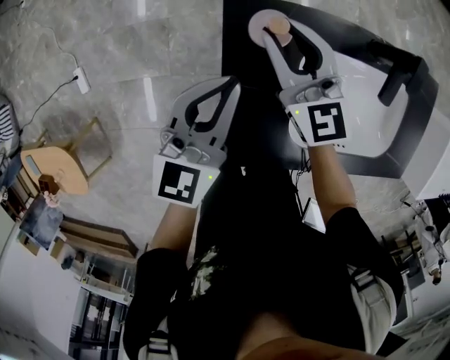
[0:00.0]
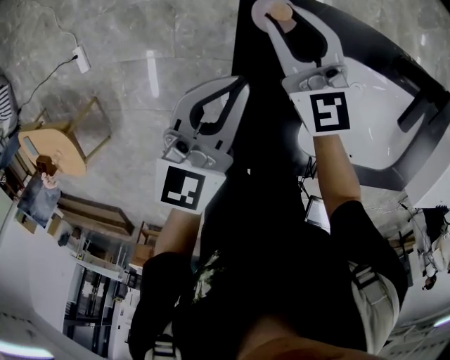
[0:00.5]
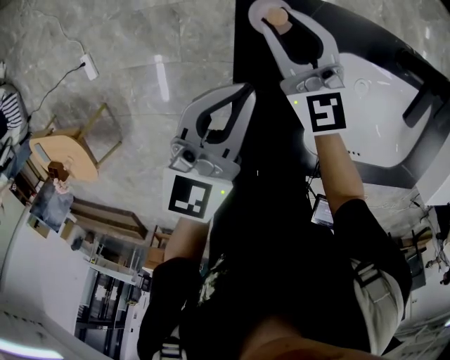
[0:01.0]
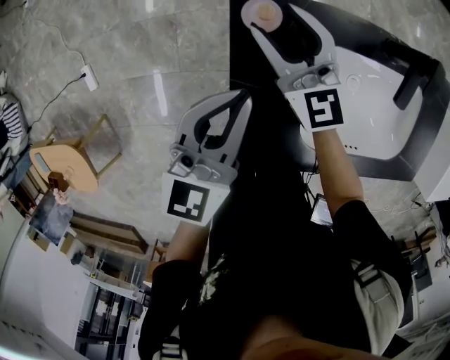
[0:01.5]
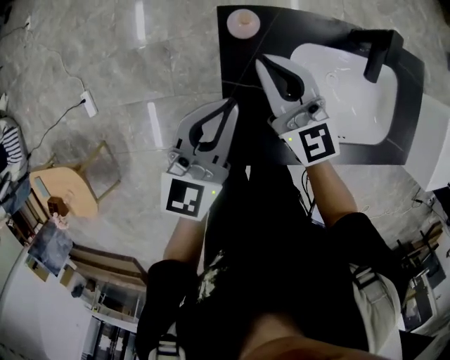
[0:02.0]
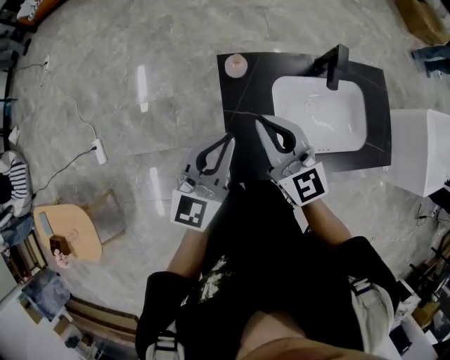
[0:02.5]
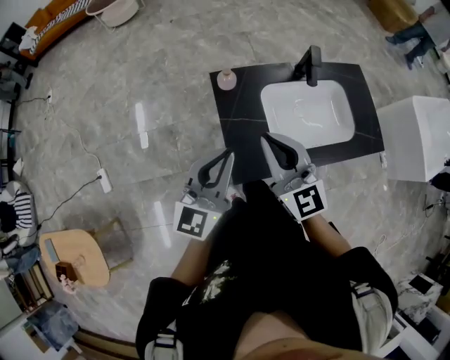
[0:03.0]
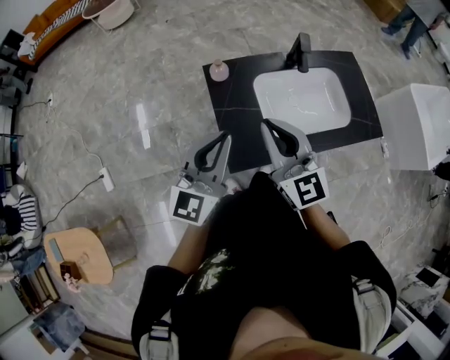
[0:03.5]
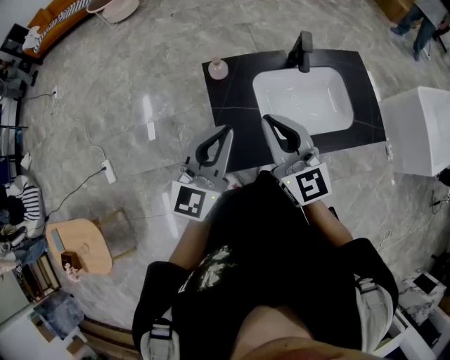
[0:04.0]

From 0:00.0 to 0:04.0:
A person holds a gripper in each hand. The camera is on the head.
From 0:00.0 to 0:02.0: The grippers both shift backward and upward by approximately 10 cm. The right gripper closes its fingers.
From 0:02.0 to 0:04.0: The grippers both shift backward and upward by approximately 30 cm.

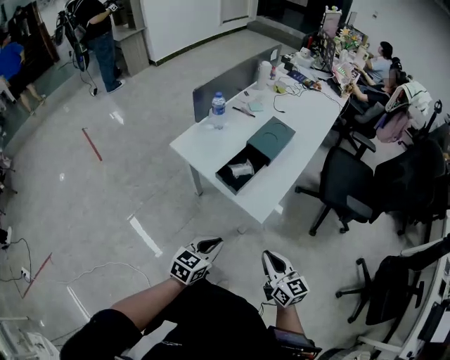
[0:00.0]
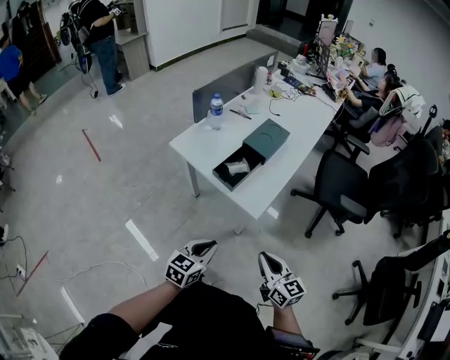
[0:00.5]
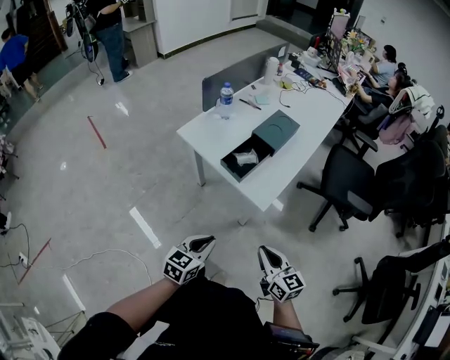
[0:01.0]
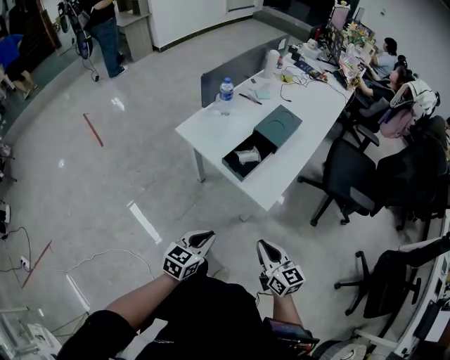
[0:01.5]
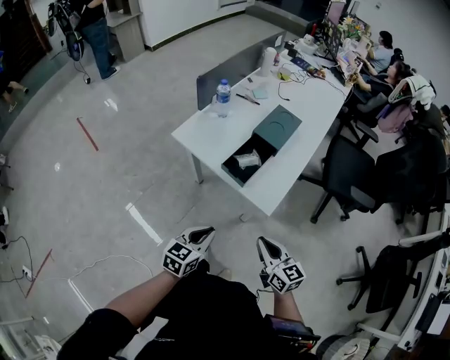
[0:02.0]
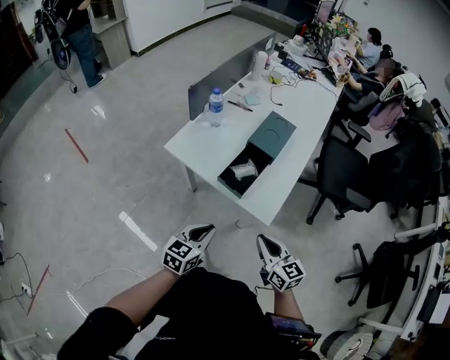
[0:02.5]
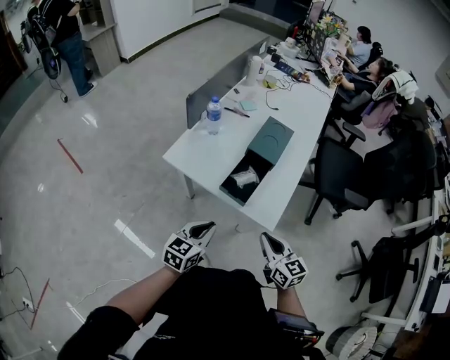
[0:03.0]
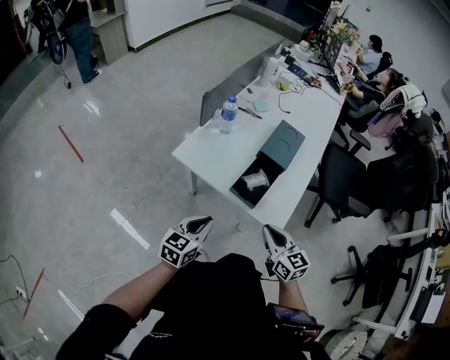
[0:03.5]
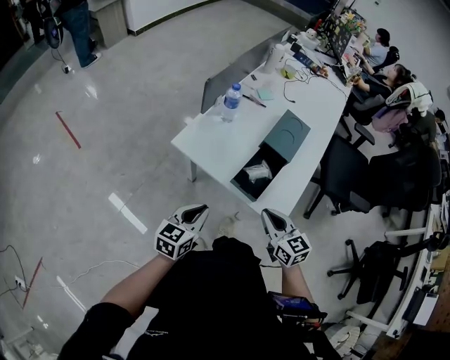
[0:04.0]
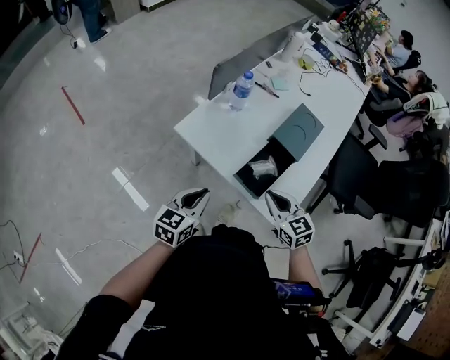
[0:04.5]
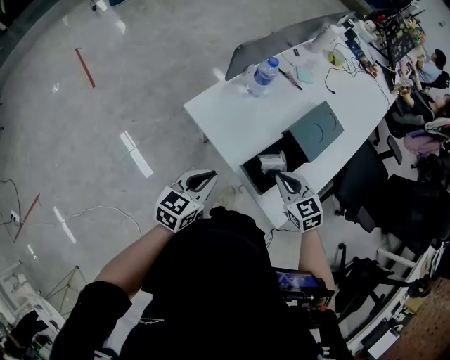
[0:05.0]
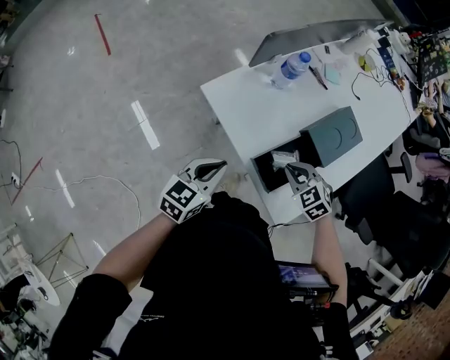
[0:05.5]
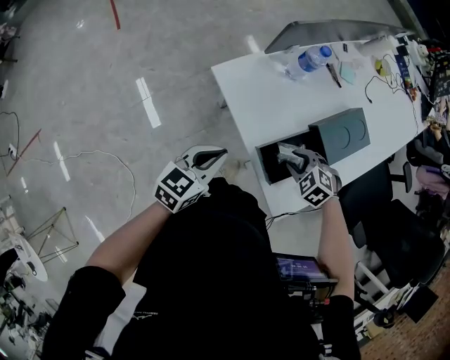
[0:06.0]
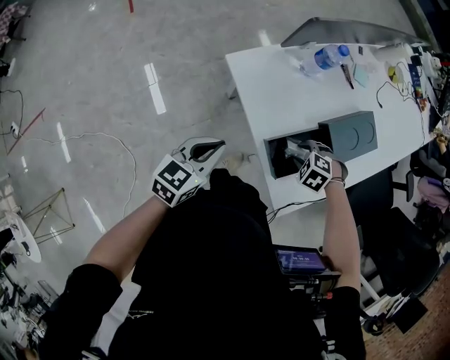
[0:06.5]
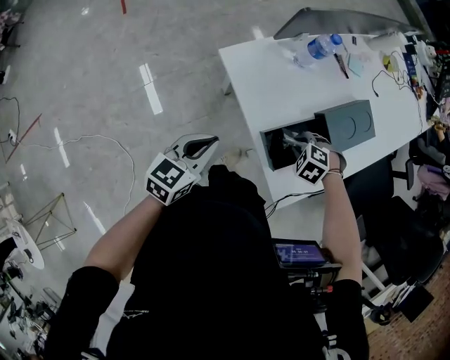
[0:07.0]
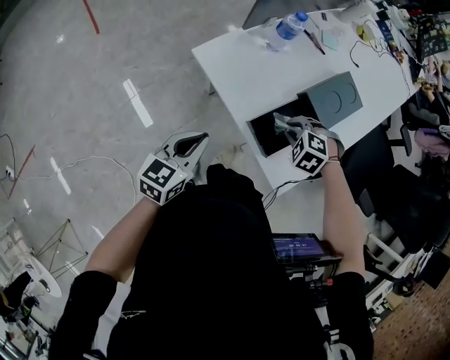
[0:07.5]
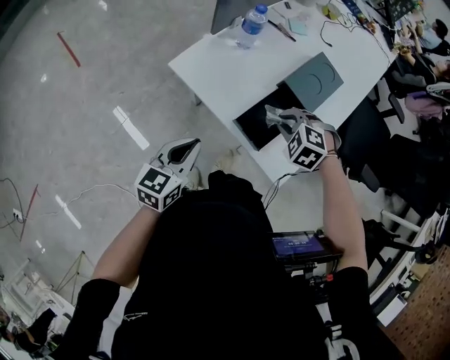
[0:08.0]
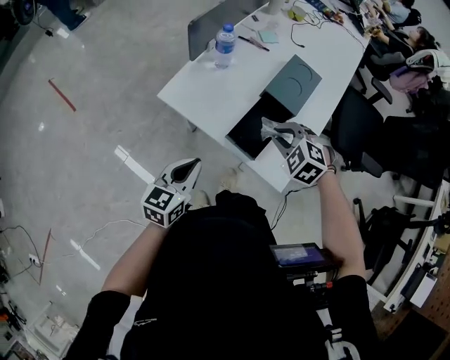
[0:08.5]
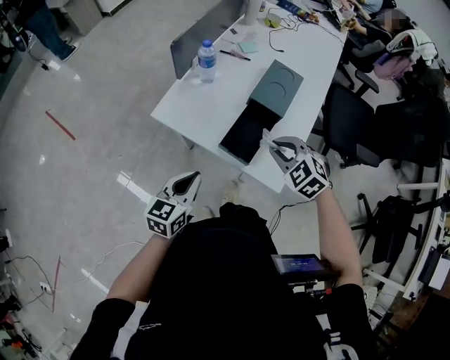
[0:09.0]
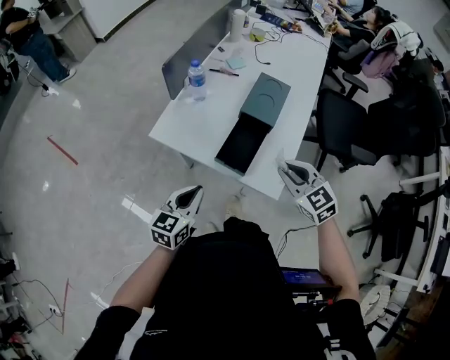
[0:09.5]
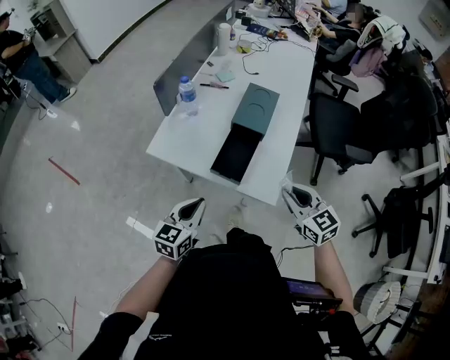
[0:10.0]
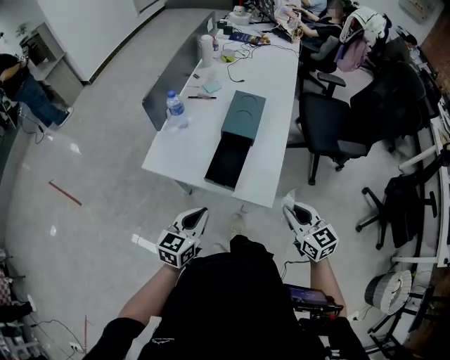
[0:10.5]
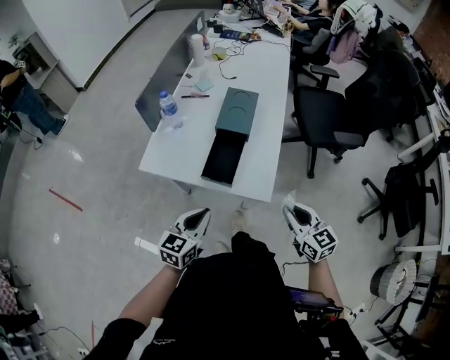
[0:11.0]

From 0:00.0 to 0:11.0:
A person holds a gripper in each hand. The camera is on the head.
From 0:00.0 to 0:02.0: The grippers both shift to the left by approximately 5 cm.
From 0:02.0 to 0:03.5: The two grippers go about 15 cm forward and to the left.
From 0:03.5 to 0:05.5: The left gripper is displaced forward by some 10 cm; the right gripper moves forward and downward, about 20 cm, and tips its fingers downward by approximately 40 degrees.
From 0:05.5 to 0:07.5: The right gripper turns by roughly 30 degrees, and opens and closes again.
From 0:07.5 to 0:09.0: The right gripper heads upward, covering approximately 10 cm, and turns by some 40 degrees.
From 0:09.0 to 0:11.0: The right gripper heads backward and to the right, covering some 20 cm, and twists roughly 50 degrees clockwise, seen from behind; the left gripper moves to the right, roughly 5 cm.

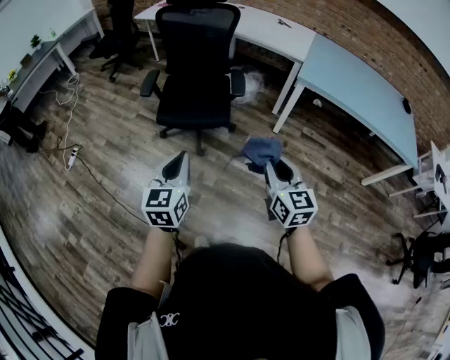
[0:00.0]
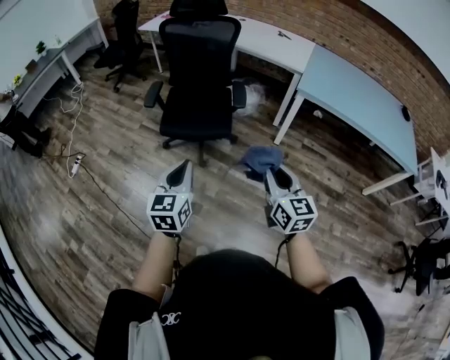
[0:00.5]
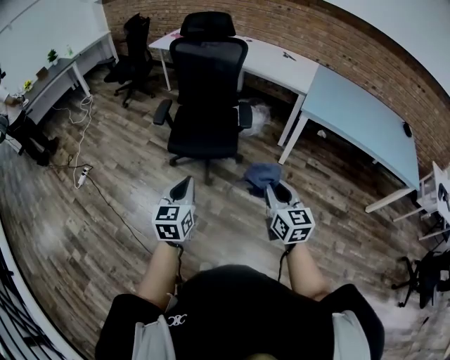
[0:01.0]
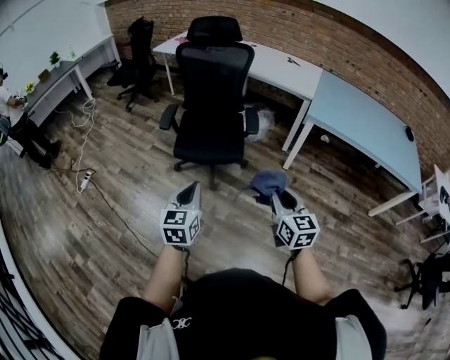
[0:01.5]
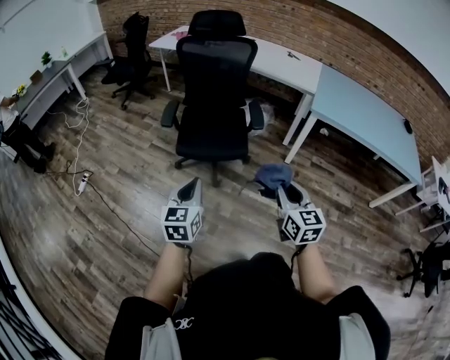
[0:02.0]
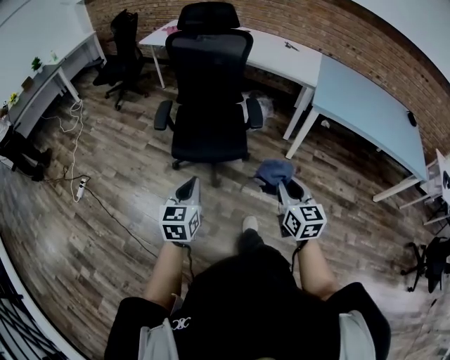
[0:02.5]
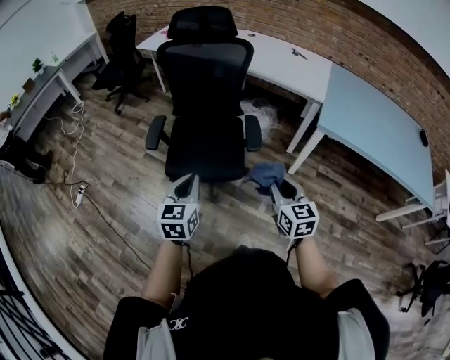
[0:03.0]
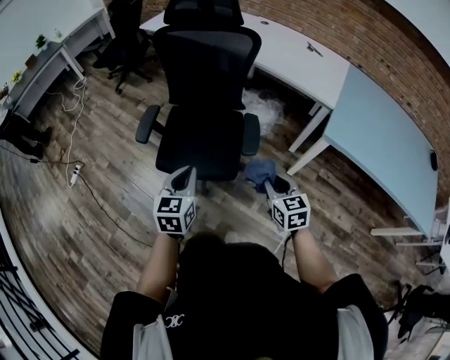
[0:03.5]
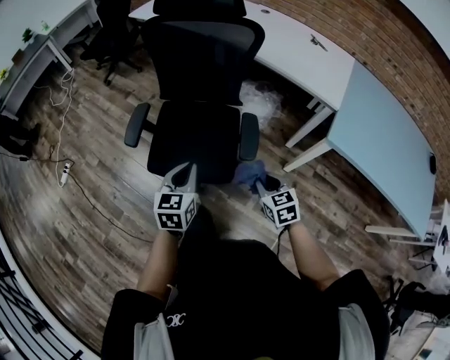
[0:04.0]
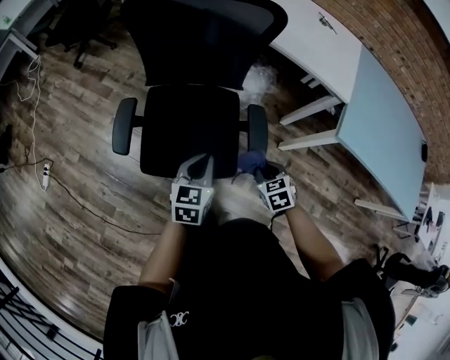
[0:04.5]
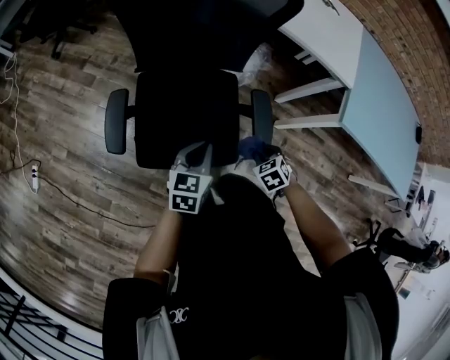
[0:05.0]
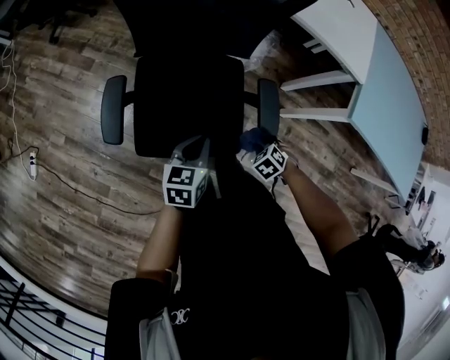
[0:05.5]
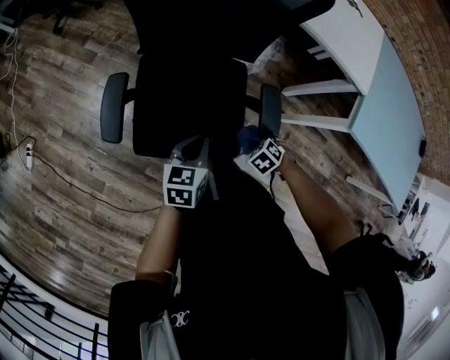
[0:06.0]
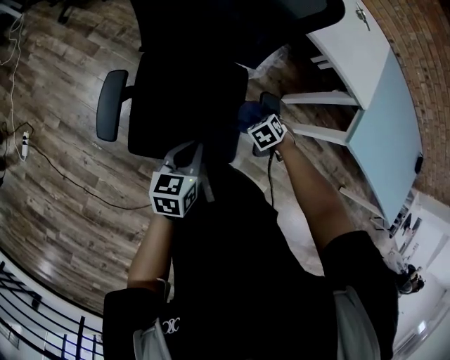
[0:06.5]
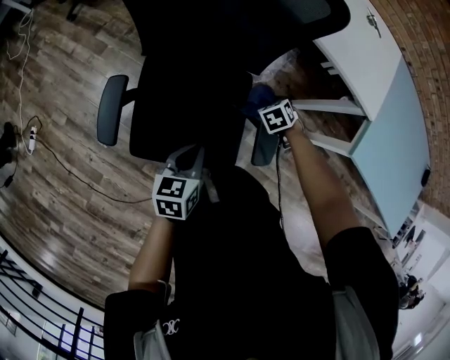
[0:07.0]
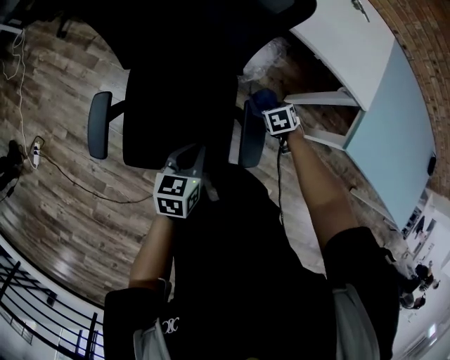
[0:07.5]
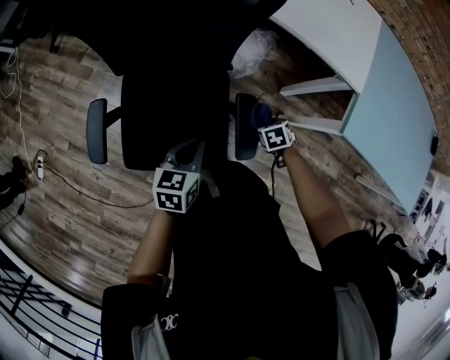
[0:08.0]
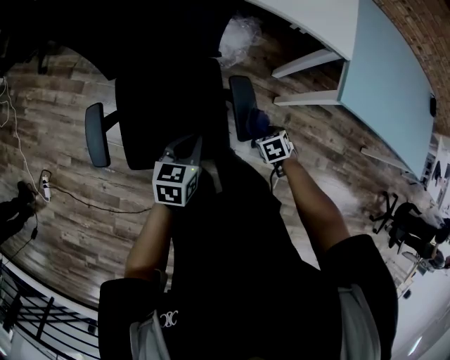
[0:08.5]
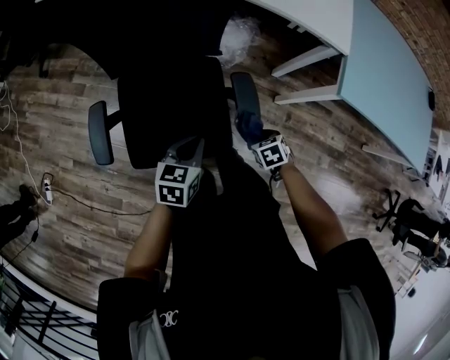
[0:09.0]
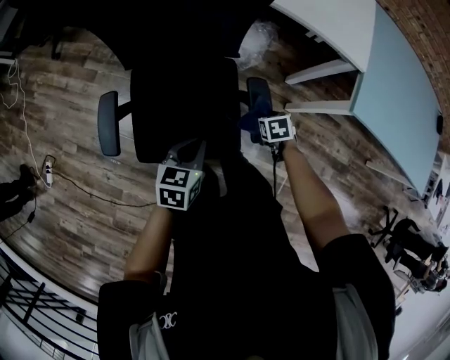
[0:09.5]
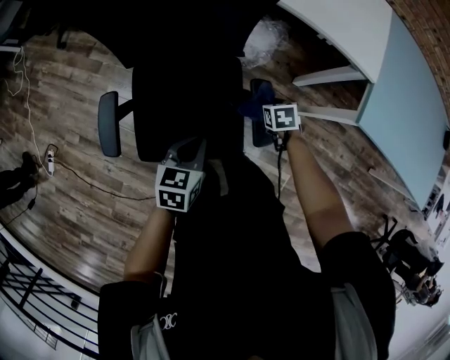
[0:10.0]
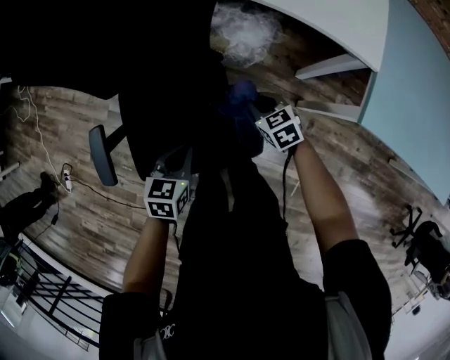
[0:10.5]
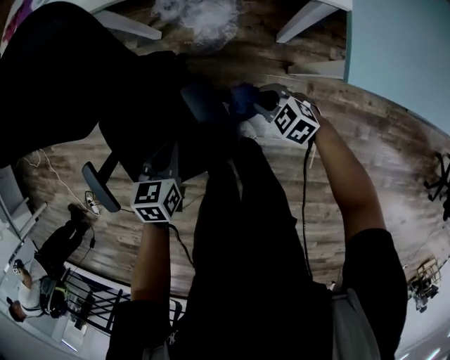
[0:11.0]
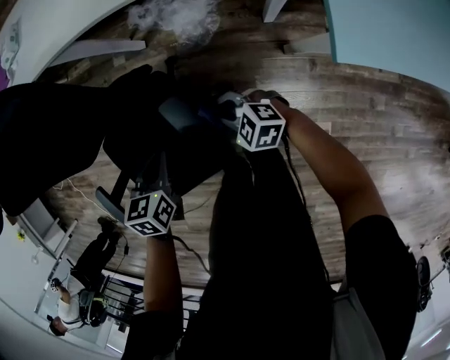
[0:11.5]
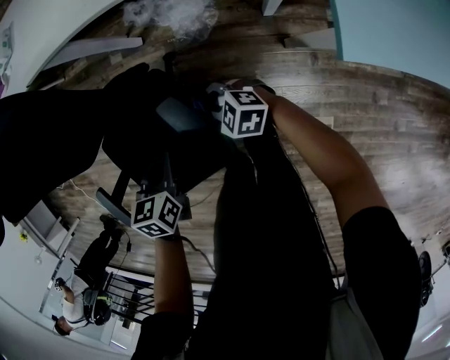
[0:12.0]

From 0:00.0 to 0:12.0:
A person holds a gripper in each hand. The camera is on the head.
From 0:00.0 to 0:02.0: The grippers both shift to the left by about 10 cm.
From 0:02.0 to 0:04.0: The right gripper heads forward and downward, covering some 40 cm, and rotates about 30 degrees. The left gripper goes about 35 cm forward.
From 0:04.0 to 0:06.0: The right gripper is displaced downward by about 20 cm, and angles its fingers downward, by some 40 degrees. The left gripper moves about 20 cm, and changes its angle by approximately 20 degrees.
From 0:06.0 to 0:08.0: The left gripper changes place by some 10 cm. Meanwhile the right gripper changes place by about 15 cm, and turns by some 30 degrees.
From 0:10.0 to 0:12.0: The left gripper moves to the right, downward and forward, roughly 15 cm; the right gripper travels to the right and back again, roughly 10 cm each way, and swivels approximately 50 degrees.
